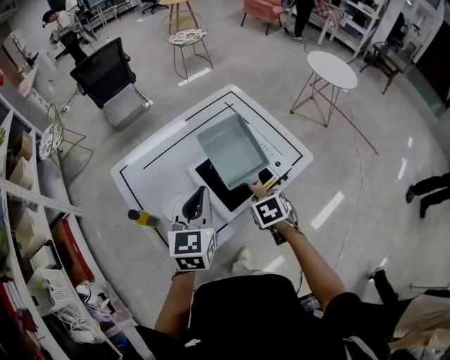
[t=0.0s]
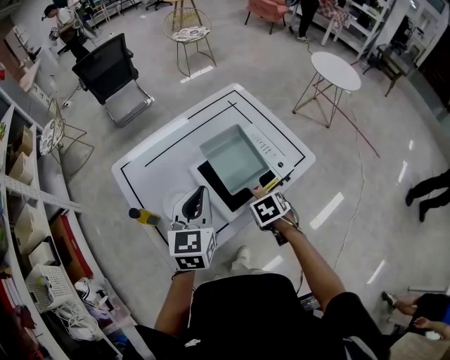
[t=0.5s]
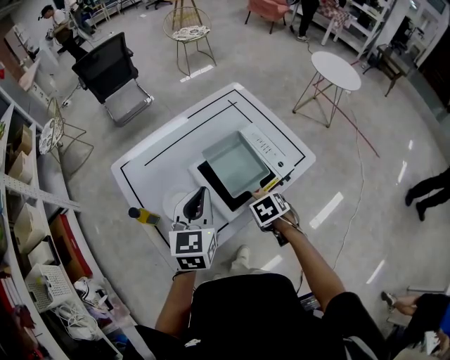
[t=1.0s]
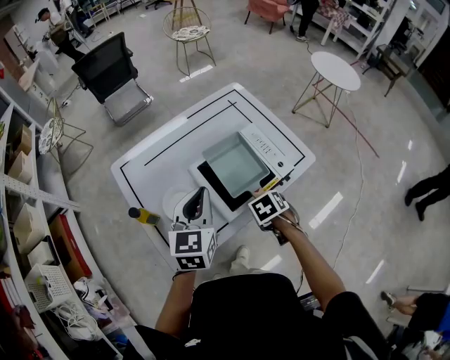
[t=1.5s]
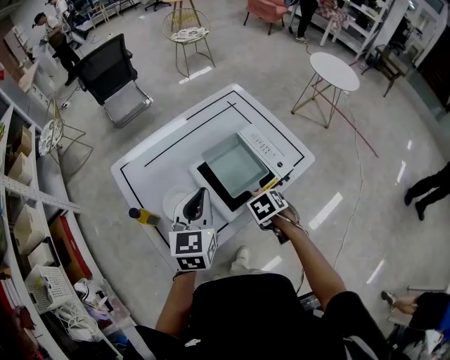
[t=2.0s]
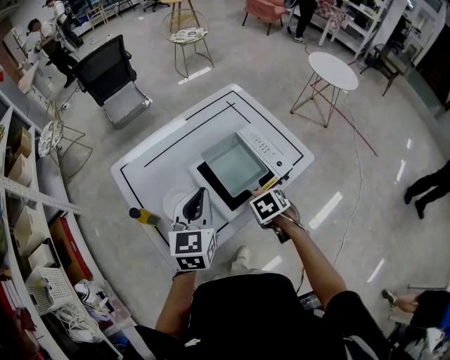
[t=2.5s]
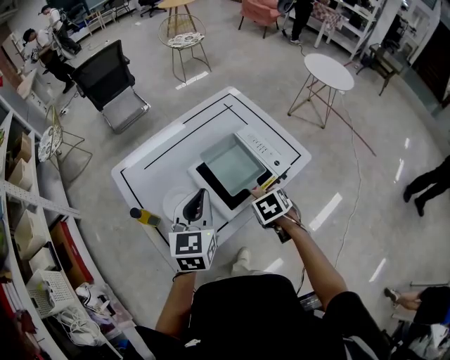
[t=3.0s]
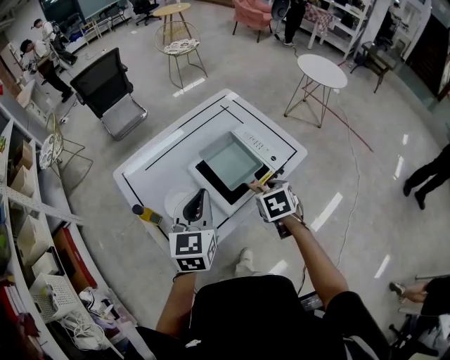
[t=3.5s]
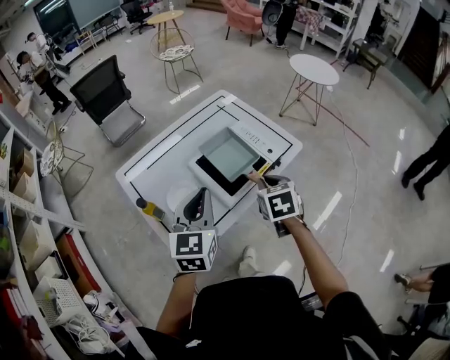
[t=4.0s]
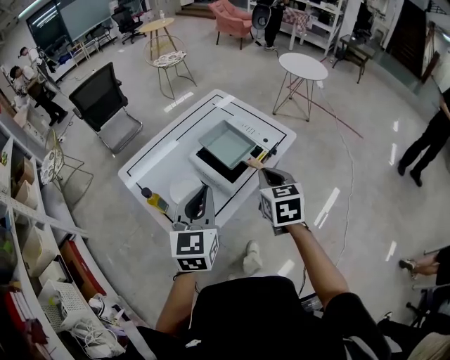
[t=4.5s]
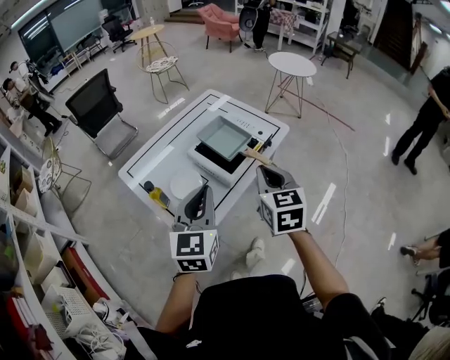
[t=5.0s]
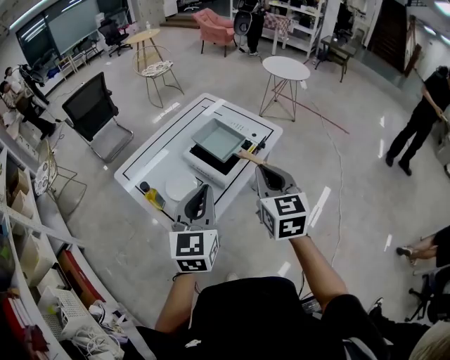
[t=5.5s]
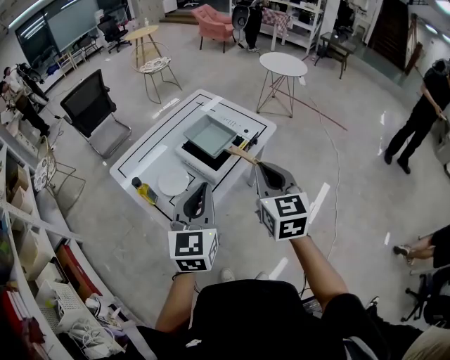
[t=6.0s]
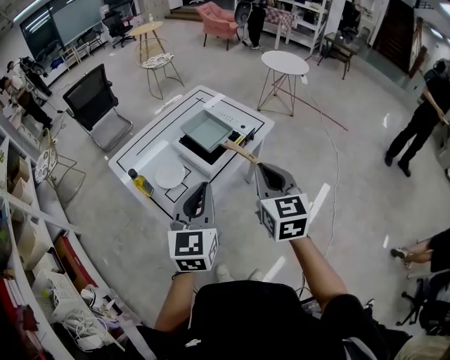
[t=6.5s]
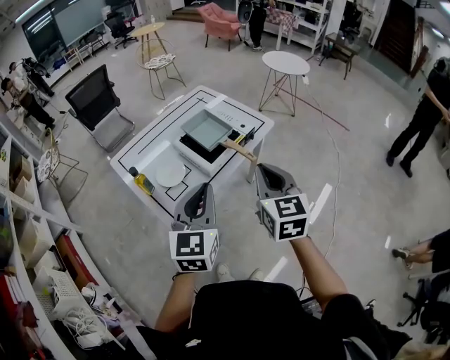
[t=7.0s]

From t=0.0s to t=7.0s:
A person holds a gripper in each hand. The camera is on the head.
From t=0.0s to t=2.0s: The right gripper changes place by about 5 cm.
From t=2.0s to t=3.5s: The right gripper heads upward, covering some 10 cm, and changes its angle by roughly 20 degrees.
From t=3.5s to t=5.0s: The right gripper is displaced backward and upward by about 25 cm, tilts its fingers about 40 degrees upward, and closes, while the left gripper goes some 15 cm backward.
From t=5.0s to t=7.0s: Both grippers move to the right and backward, about 10 cm.

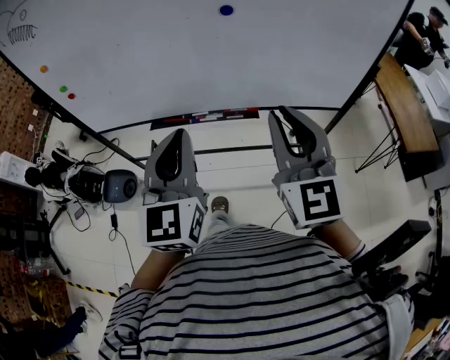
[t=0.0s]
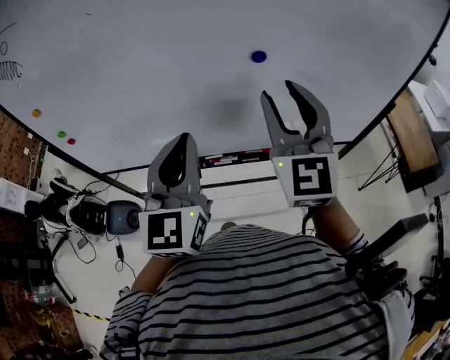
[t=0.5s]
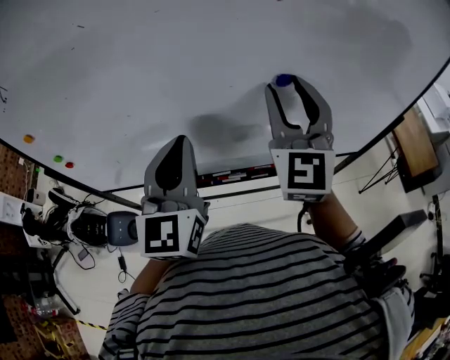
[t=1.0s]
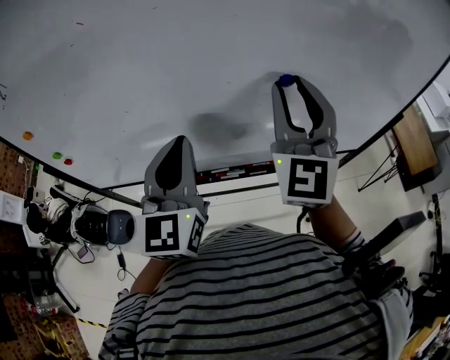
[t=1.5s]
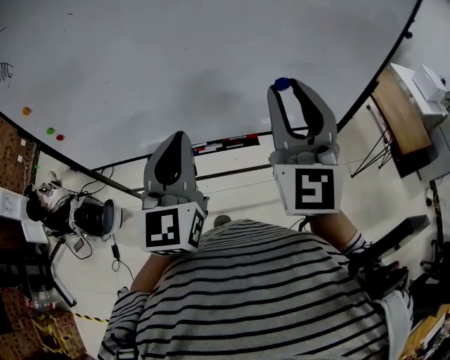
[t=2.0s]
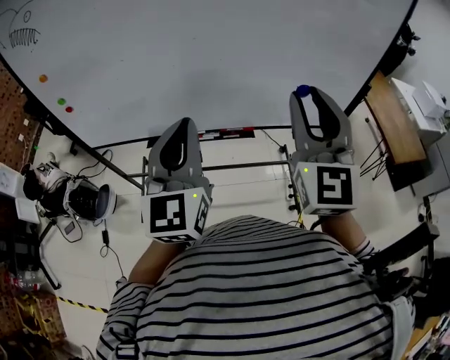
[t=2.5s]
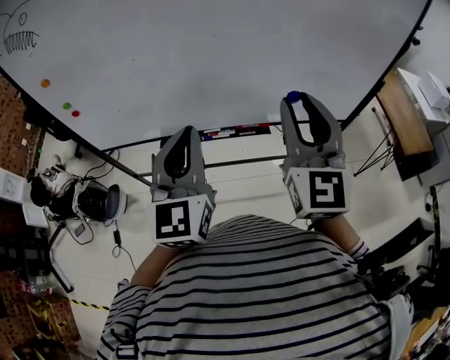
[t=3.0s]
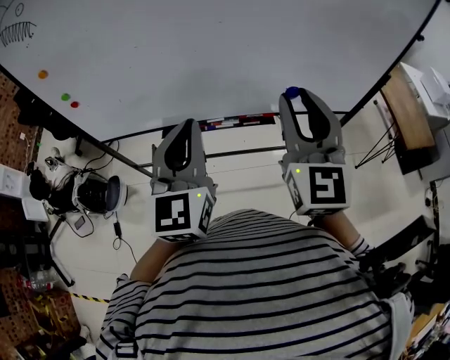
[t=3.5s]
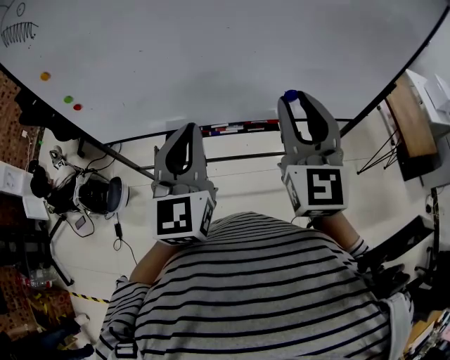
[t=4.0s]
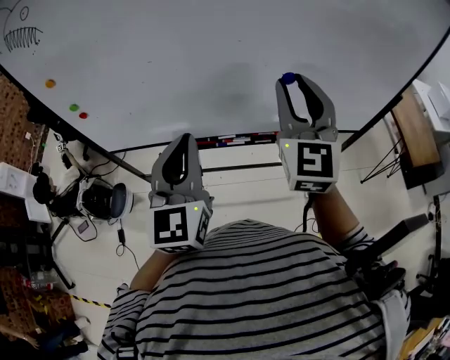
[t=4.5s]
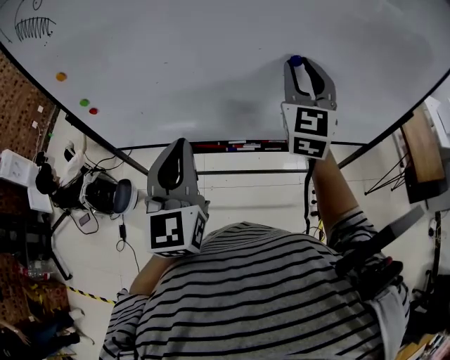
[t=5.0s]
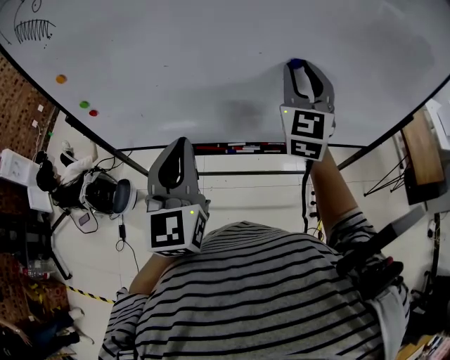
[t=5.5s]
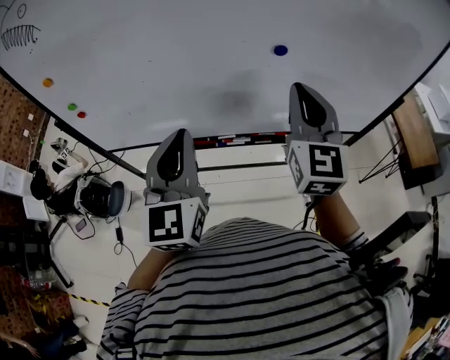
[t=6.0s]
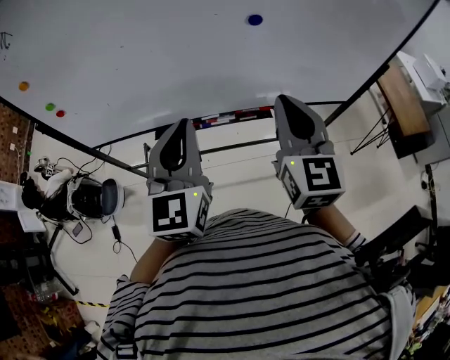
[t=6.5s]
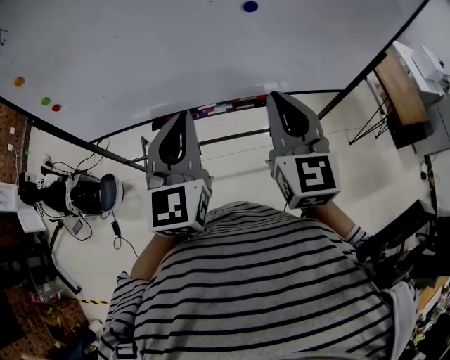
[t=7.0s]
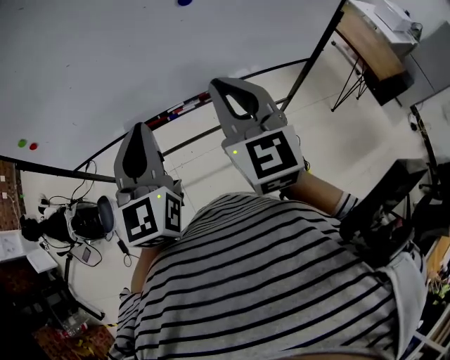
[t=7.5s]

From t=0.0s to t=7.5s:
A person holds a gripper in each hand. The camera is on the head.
From t=0.0s to t=2.0s: The left gripper moves forward, approximately 10 cm; the right gripper heads forward and upward, covering about 10 cm.
From t=2.0s to t=4.0s: The grippers both shift to the left by about 5 cm.
From t=4.0s to t=5.5s: The left gripper heads to the left, covering about 5 cm. The right gripper is displaced forward by approximately 20 cm.
From t=5.5s to t=7.5s: The right gripper shifts approximately 20 cm backward, and closes, while the left gripper shifts about 5 cm to the right.

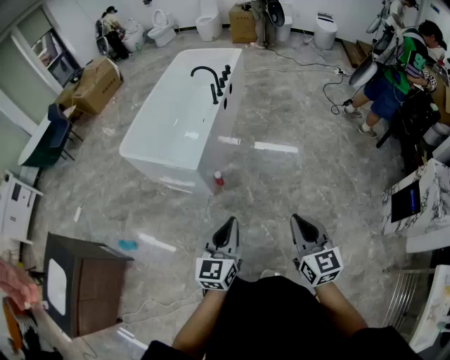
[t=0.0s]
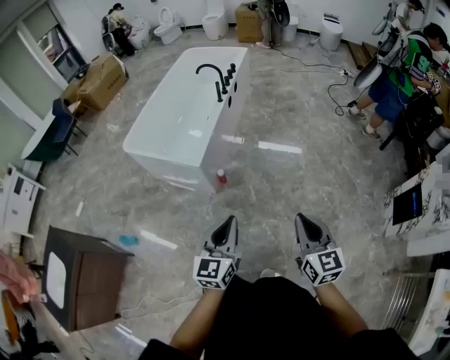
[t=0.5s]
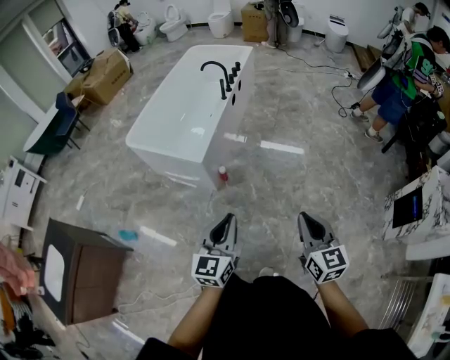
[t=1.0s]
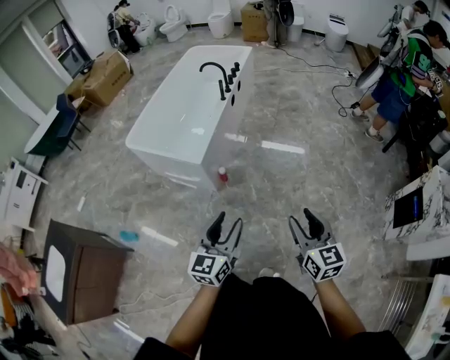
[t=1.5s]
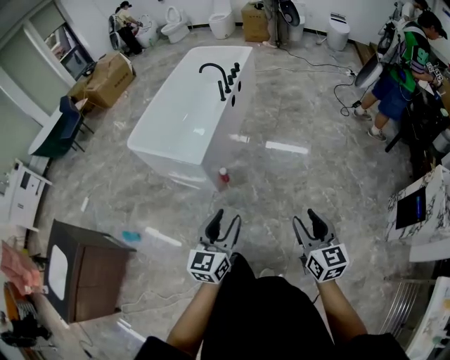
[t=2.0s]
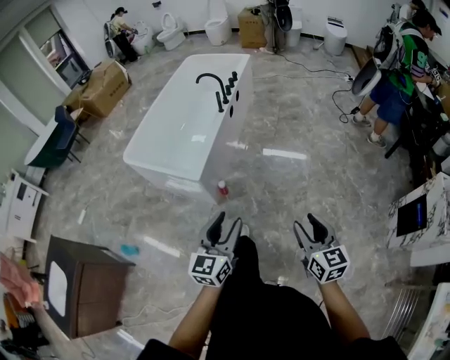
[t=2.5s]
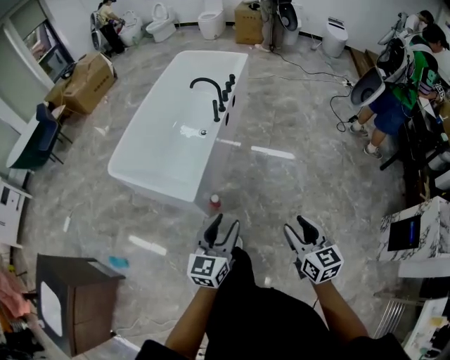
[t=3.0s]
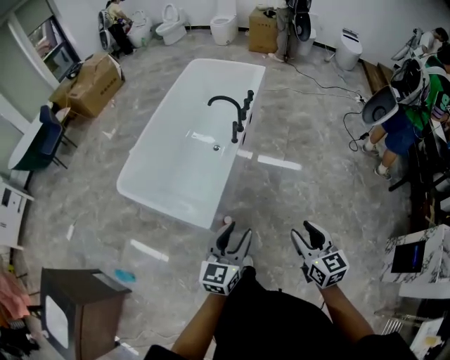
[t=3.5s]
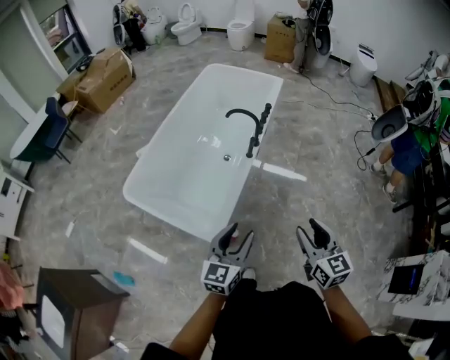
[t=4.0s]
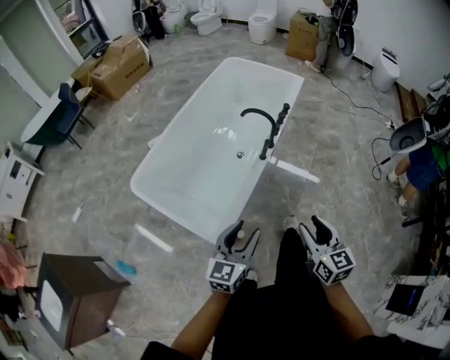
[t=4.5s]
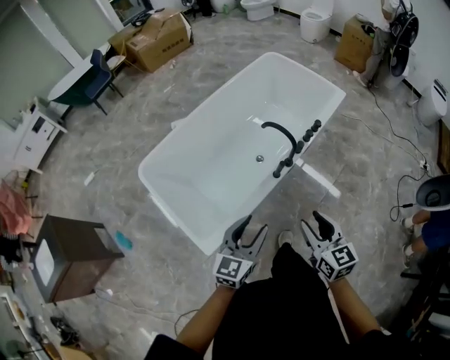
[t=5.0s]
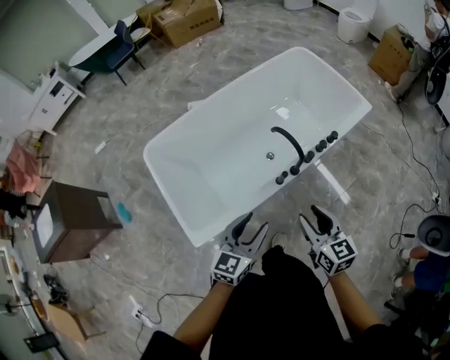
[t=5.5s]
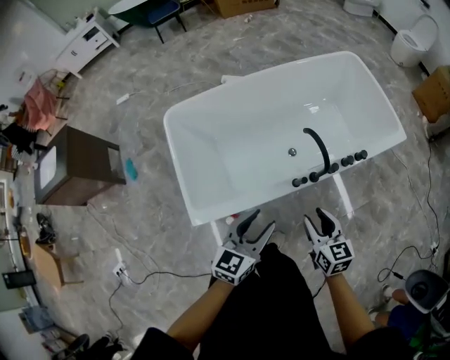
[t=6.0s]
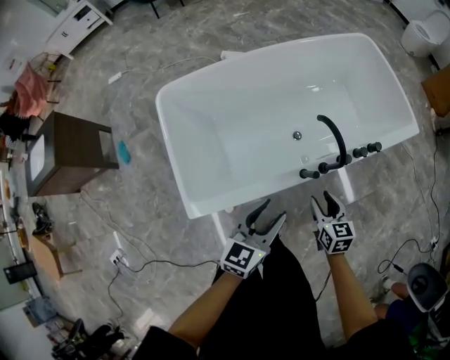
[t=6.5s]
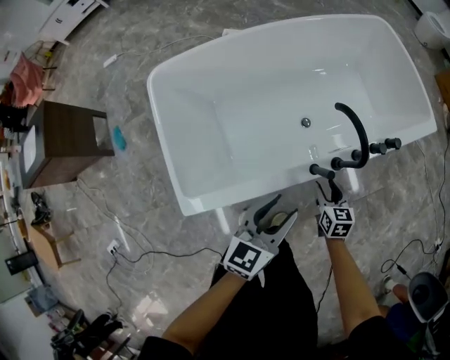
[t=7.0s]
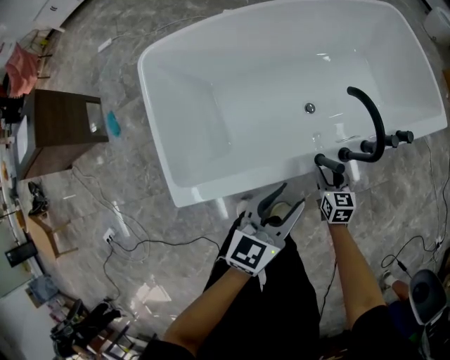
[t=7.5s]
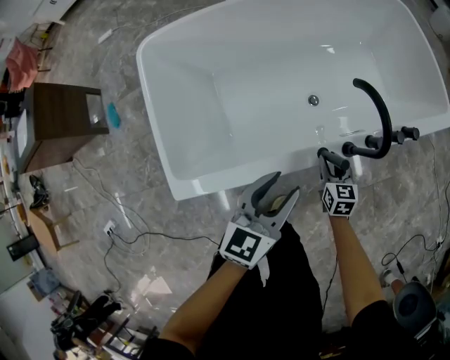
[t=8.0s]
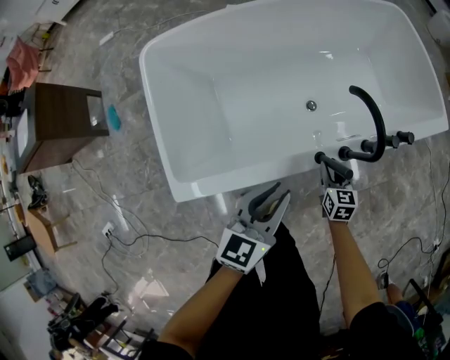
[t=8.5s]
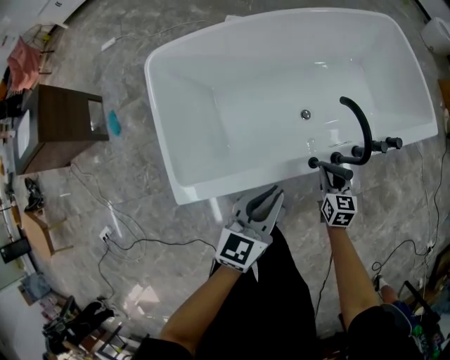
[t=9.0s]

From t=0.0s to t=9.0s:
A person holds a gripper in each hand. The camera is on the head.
From t=0.0s to t=2.0s: The right gripper shifts roughly 5 cm to the right, and opens its fingers. Meanwhile the left gripper opens.
From t=2.0s to t=4.5s: The two grippers travel together, forward, some 60 cm.
From t=4.5s to t=7.0s: The left gripper ends up some 40 cm from where it was, and rotates approximately 30 degrees. Meanwhile the right gripper ends up about 60 cm from where it was, and swivels about 40 degrees.
From t=7.0s to t=9.0s: The left gripper closes; the right gripper reaches about 10 cm downward, then returns.

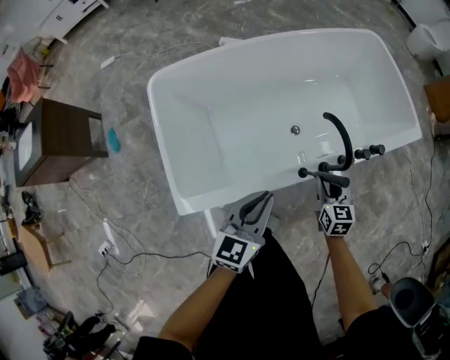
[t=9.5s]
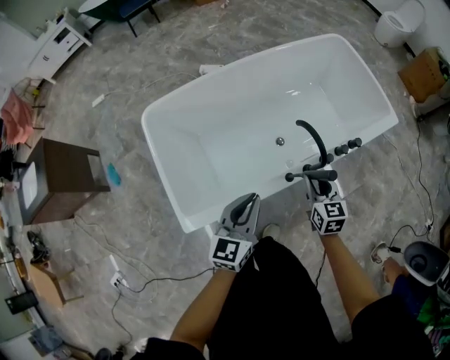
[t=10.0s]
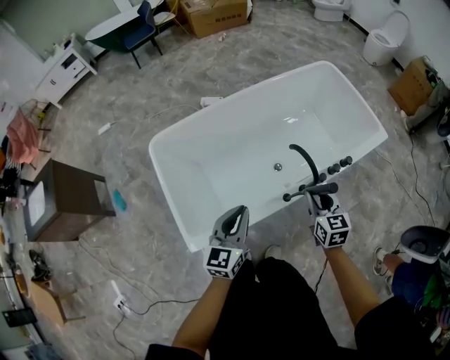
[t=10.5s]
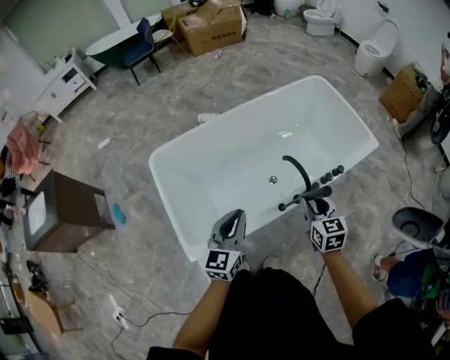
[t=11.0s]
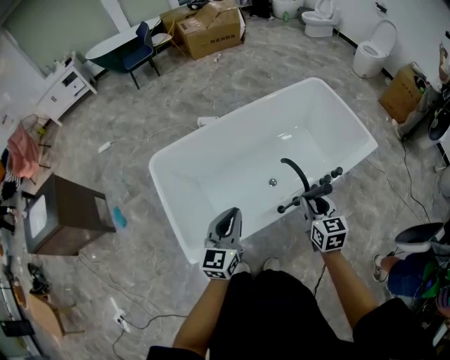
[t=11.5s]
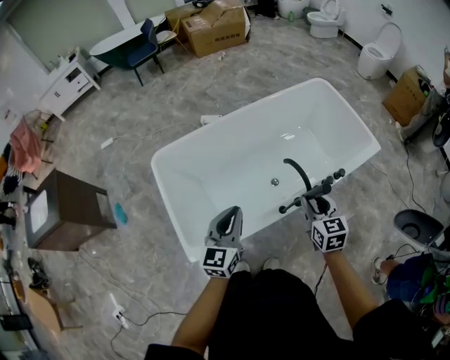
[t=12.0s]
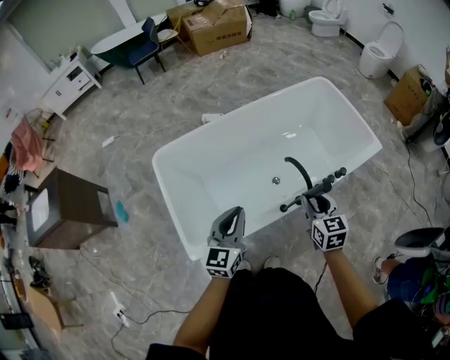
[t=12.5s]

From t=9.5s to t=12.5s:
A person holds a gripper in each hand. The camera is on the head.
From t=9.5s to t=11.0s: The left gripper goes some 15 cm upward. The right gripper travels upward by some 25 cm.
From t=11.0s to t=12.5s: The grippers stay close to where they were, moving slightly.
